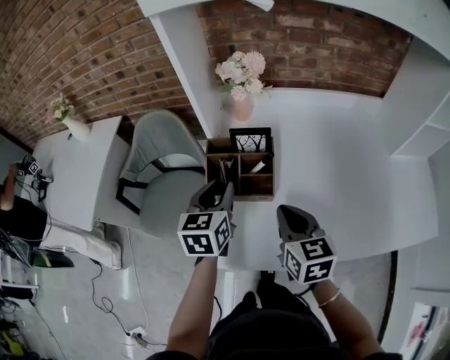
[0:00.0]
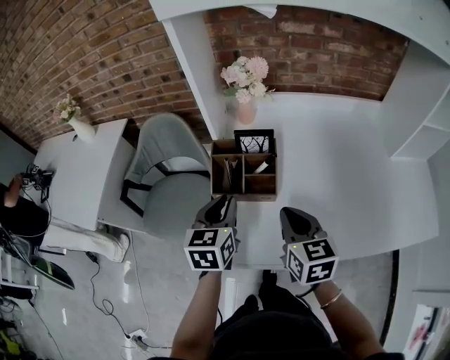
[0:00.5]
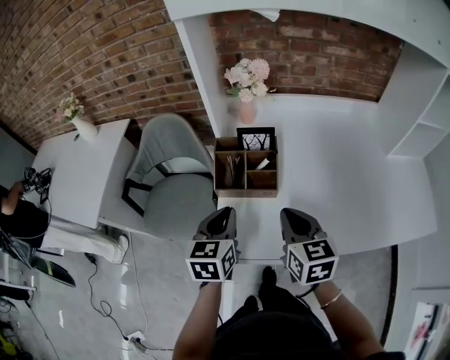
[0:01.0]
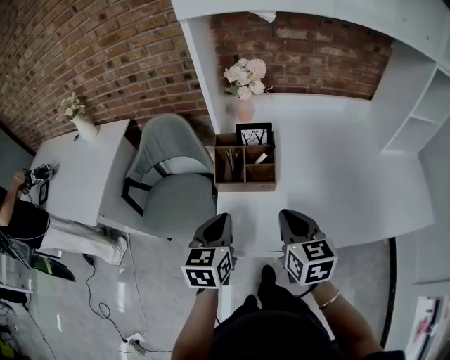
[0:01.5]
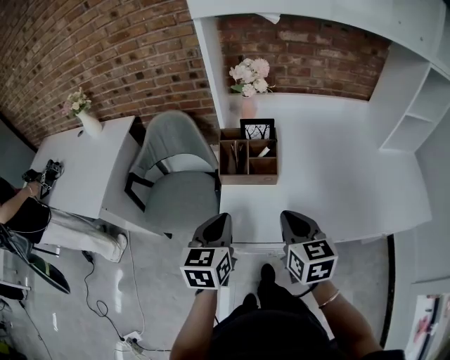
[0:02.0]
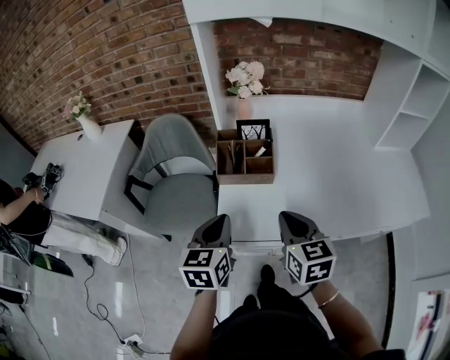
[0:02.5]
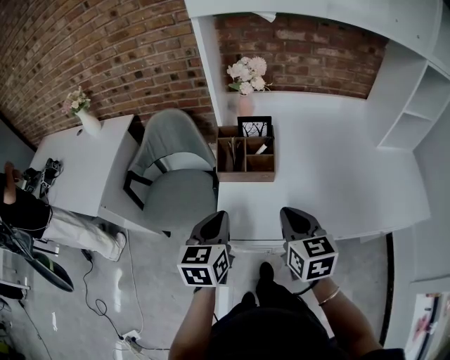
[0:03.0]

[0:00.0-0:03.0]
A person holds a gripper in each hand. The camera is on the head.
0:00.0 to 0:01.5: The left gripper moves backward, roughly 15 cm, and closes up. Meanwhile the right gripper shifts about 5 cm backward.
0:01.5 to 0:03.0: There are only small adjustments of the grippers.

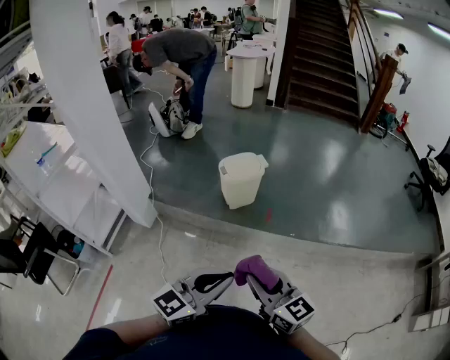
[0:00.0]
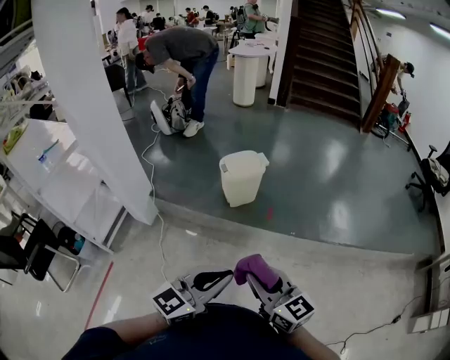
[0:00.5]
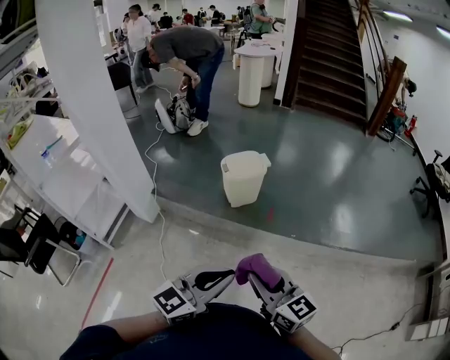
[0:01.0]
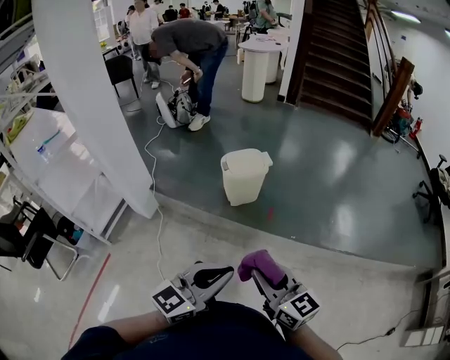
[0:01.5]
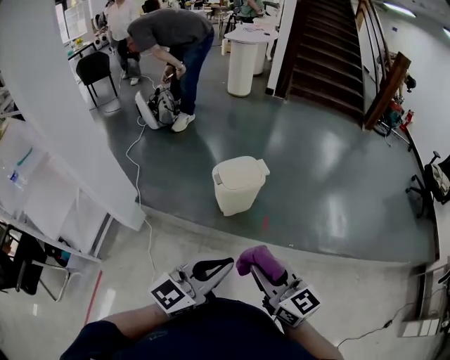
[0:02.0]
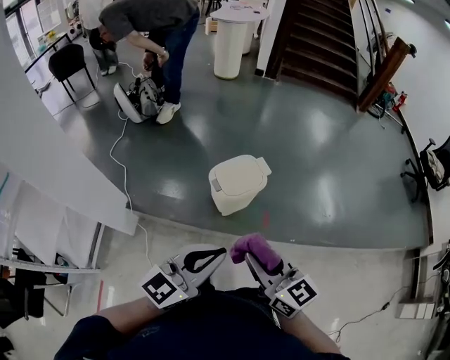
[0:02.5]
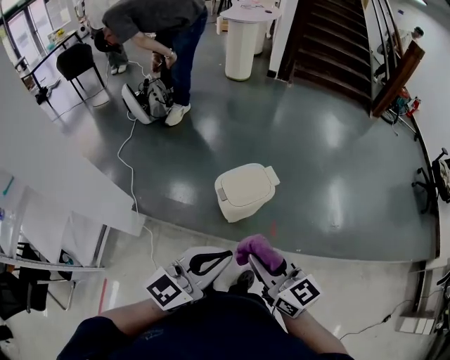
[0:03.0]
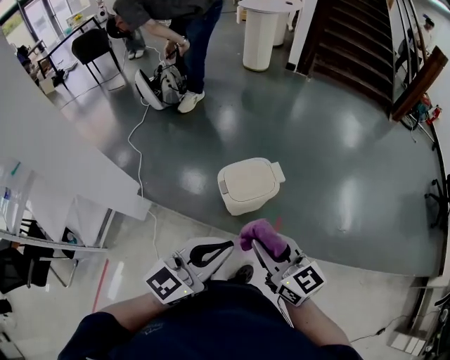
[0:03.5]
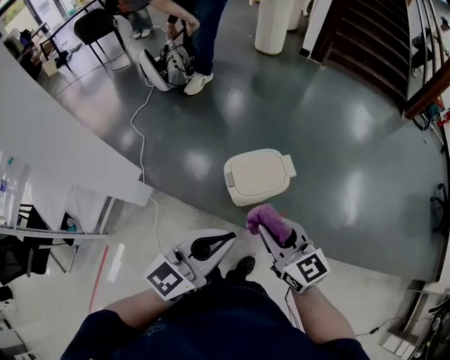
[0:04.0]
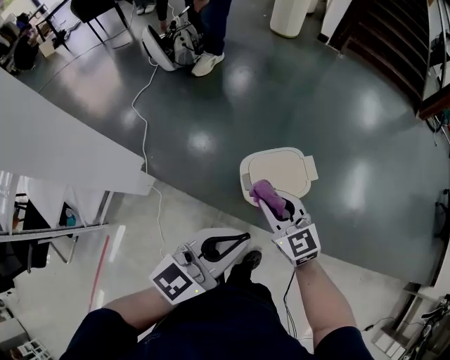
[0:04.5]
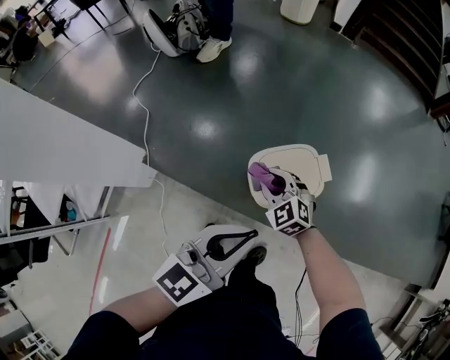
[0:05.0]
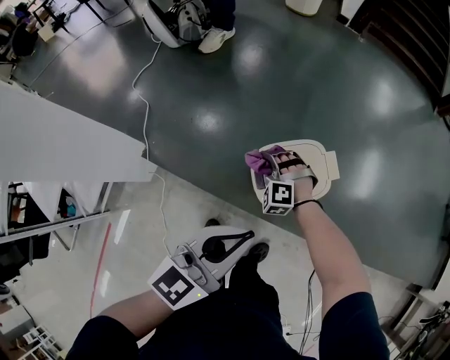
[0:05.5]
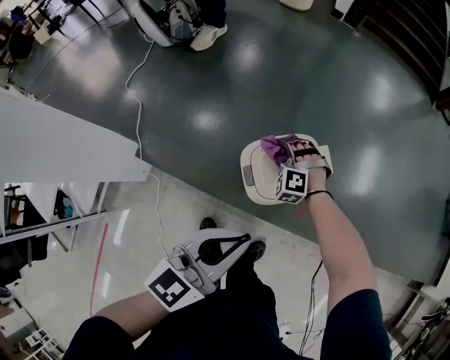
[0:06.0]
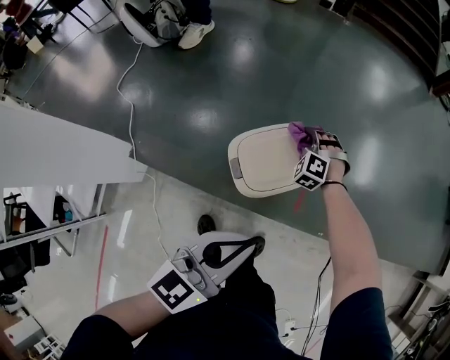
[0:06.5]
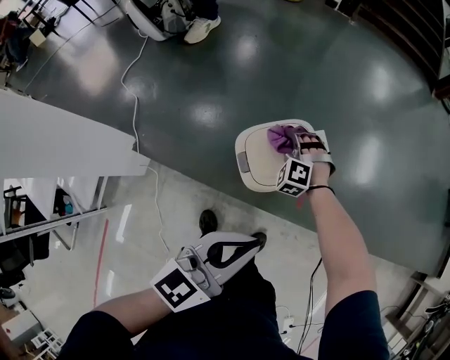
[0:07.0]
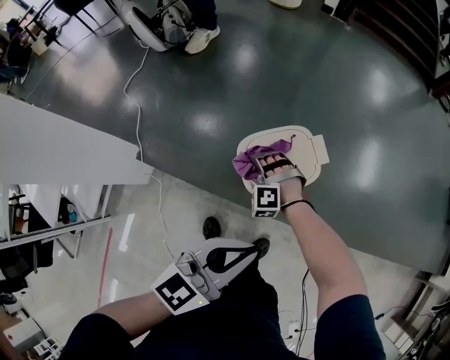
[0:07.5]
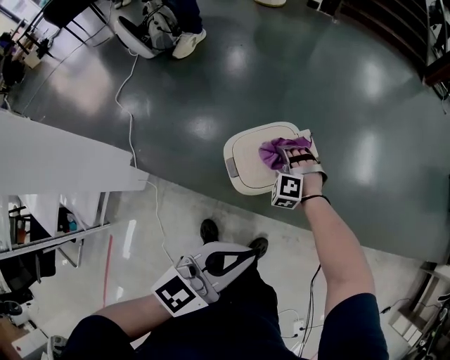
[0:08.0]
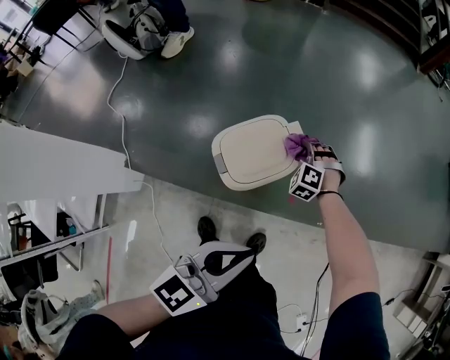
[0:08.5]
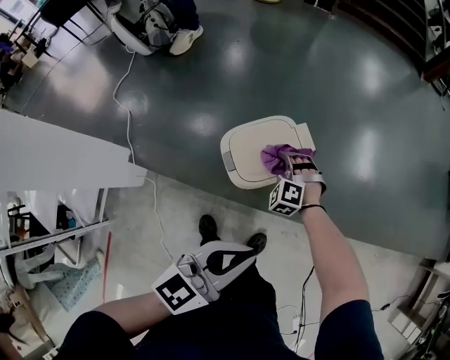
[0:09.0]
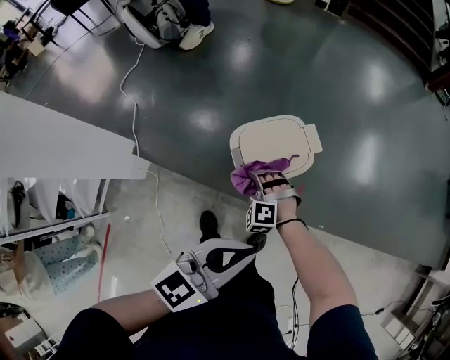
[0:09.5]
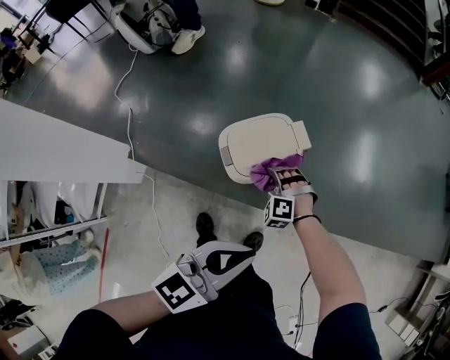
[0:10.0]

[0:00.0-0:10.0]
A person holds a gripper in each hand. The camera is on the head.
0:00.0 to 0:02.0: The grippers both shift forward by about 20 cm.
0:02.0 to 0:04.0: The two grippers go some 30 cm forward.
0:04.0 to 0:06.0: The left gripper shifts some 15 cm downward and forward. The right gripper heads downward and forward, covering about 40 cm, and rotates around the line of its fingers by roughly 70 degrees, counterclockwise from behind.
0:06.0 to 0:08.0: The right gripper moves forward and backward over some 20 cm, changing direction 2 times, while the left gripper heads to the right, covering about 10 cm.
0:08.0 to 0:10.0: The right gripper swings forward and backward, about 20 cm each way, with 2 reversals.

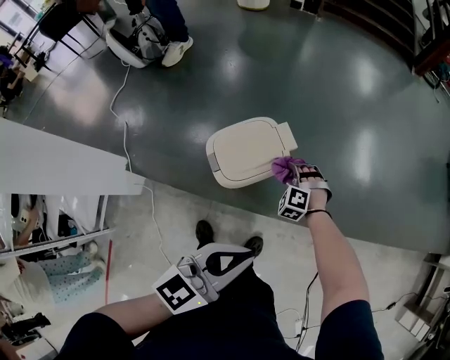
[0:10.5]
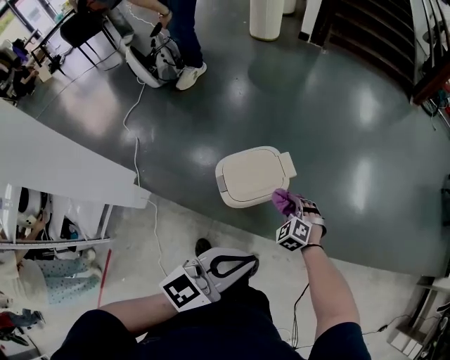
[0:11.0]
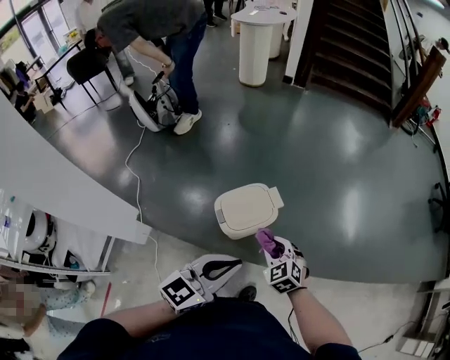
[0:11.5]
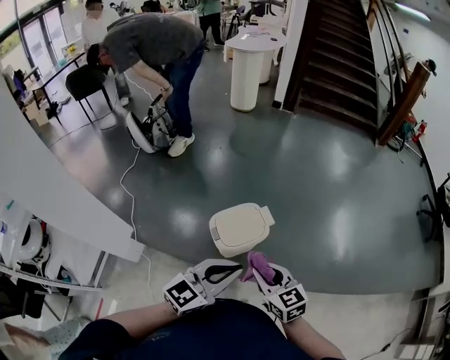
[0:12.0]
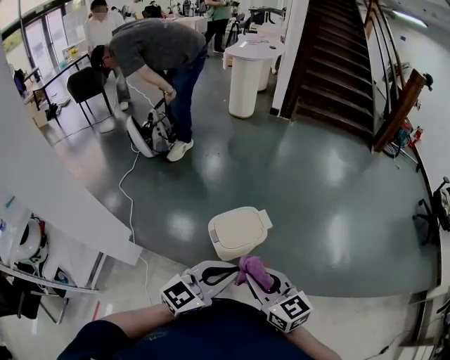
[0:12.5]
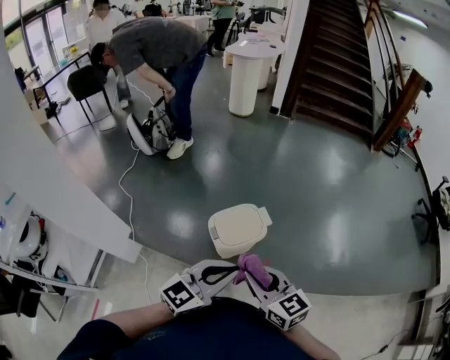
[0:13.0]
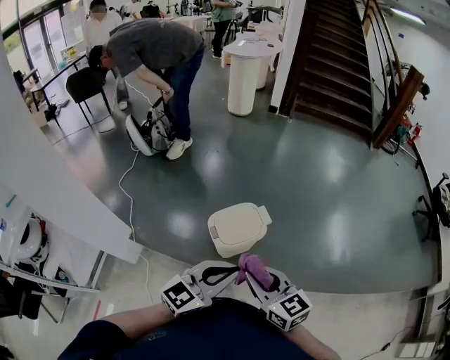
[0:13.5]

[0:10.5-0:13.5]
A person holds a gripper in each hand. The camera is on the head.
0:10.5 to 0:12.0: The left gripper goes roughly 10 cm upward; the right gripper shifts approximately 40 cm upward and backward, and rotates around the line of its fingers by about 60 degrees, clockwise from behind.
0:12.0 to 0:13.5: The right gripper is displaced upward and backward by some 10 cm.

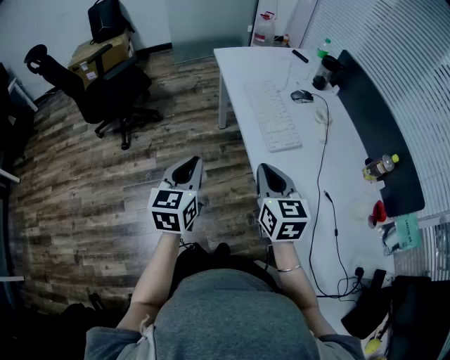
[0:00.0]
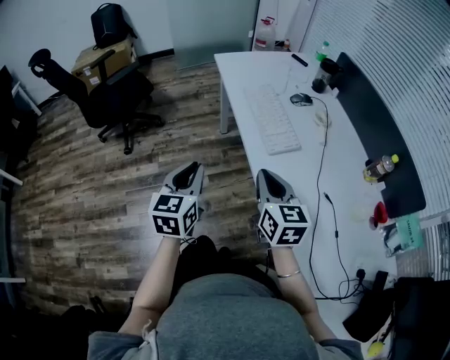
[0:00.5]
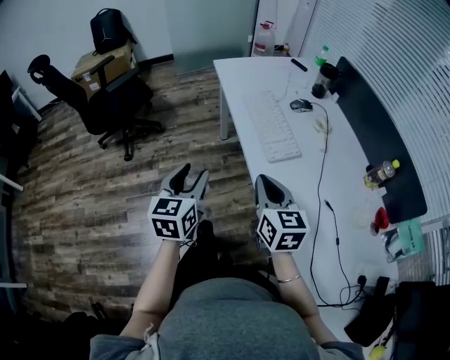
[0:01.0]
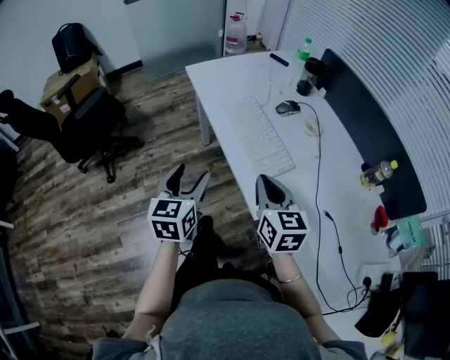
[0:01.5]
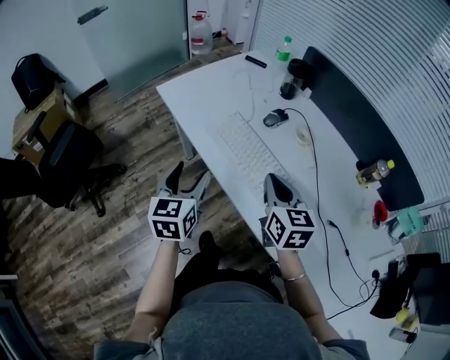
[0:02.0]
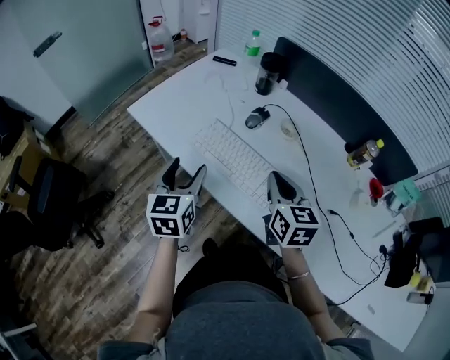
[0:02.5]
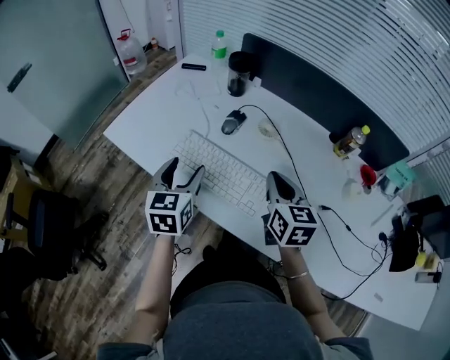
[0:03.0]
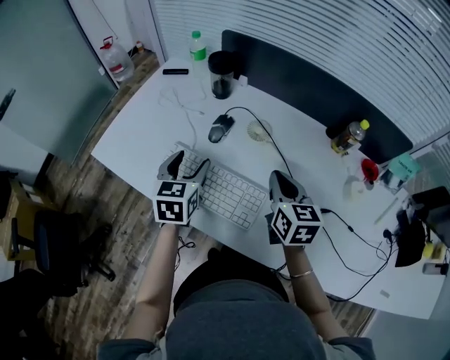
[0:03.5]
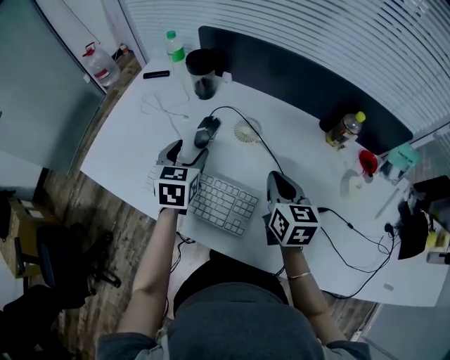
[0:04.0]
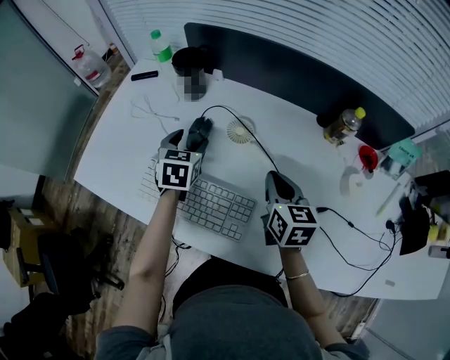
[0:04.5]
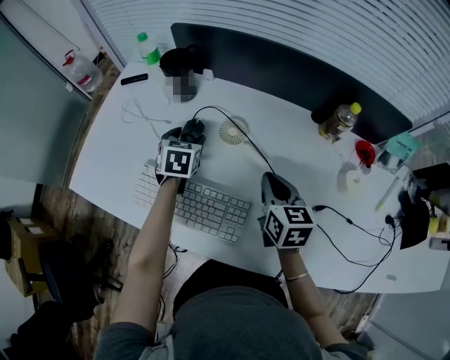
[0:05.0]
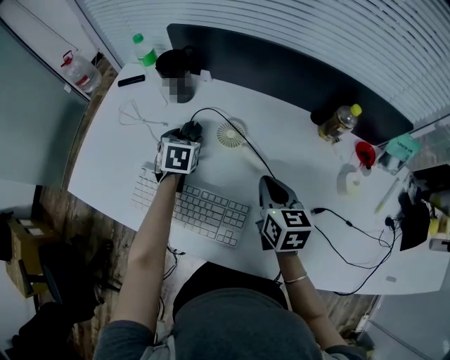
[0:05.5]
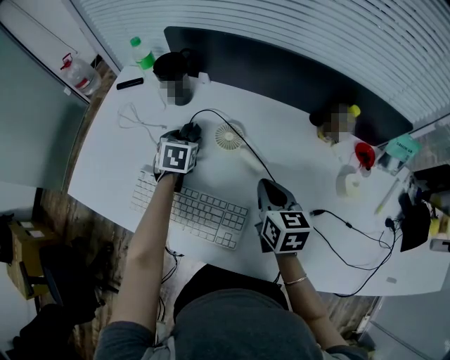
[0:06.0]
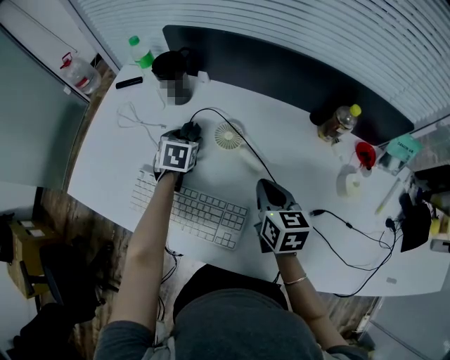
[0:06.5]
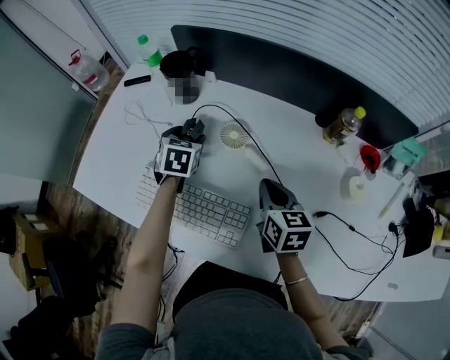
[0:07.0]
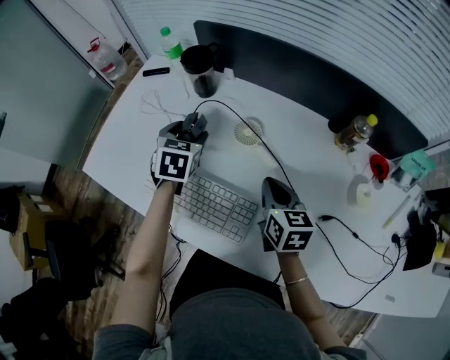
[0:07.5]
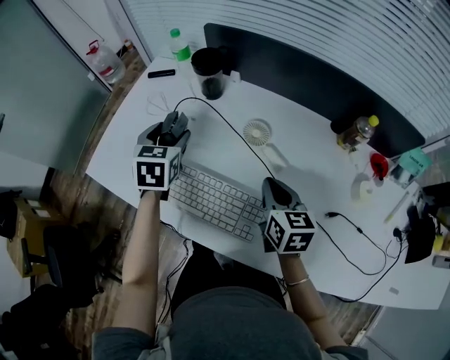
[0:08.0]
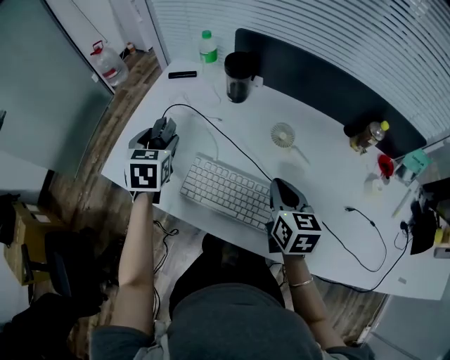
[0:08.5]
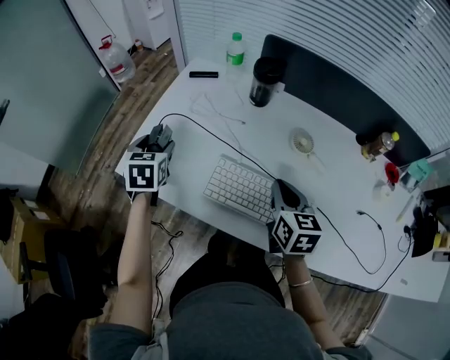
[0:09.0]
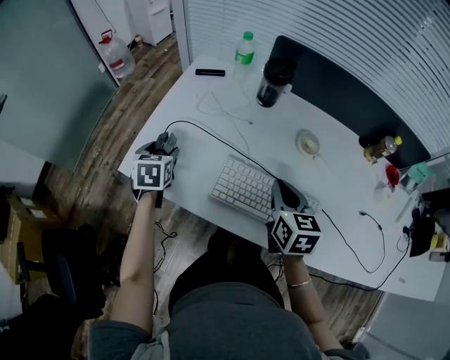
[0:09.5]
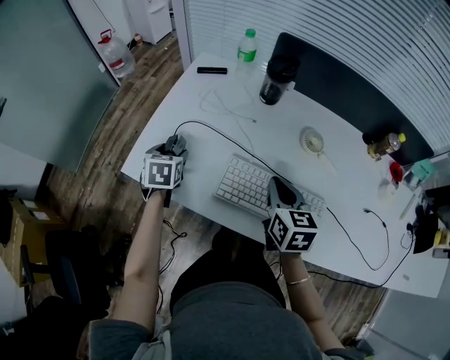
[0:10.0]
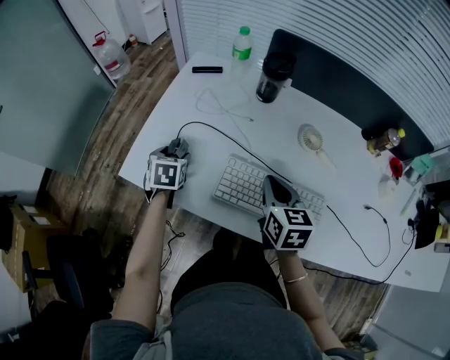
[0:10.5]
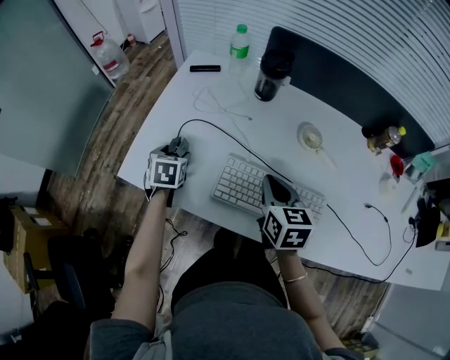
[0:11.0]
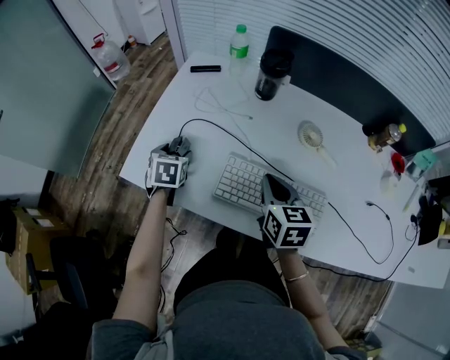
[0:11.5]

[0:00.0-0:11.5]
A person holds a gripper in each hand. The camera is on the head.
0:00.0 to 0:02.0: Both grippers travel together forward, roughly 20 cm. The left gripper rotates approximately 20 degrees, and opens its fingers; the right gripper turns by about 30 degrees.
0:02.0 to 0:04.0: The left gripper ends up approximately 30 cm from where it was, and swivels roughly 30 degrees; the right gripper ends up about 20 cm from where it was, and rotates roughly 30 degrees.
0:04.0 to 0:06.0: The left gripper moves forward and downward, some 15 cm.
0:06.0 to 0:07.5: The left gripper goes approximately 10 cm upward.
0:07.5 to 0:09.5: The right gripper shifts roughly 20 cm to the left. Meanwhile the left gripper moves to the left, approximately 35 cm.
0:09.5 to 0:11.5: The left gripper heads downward, covering some 5 cm.
